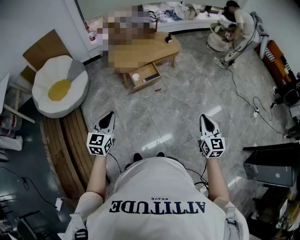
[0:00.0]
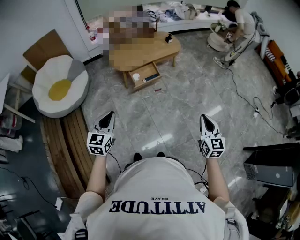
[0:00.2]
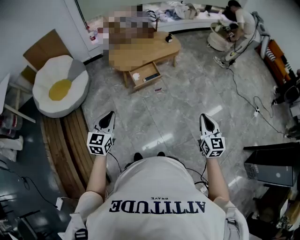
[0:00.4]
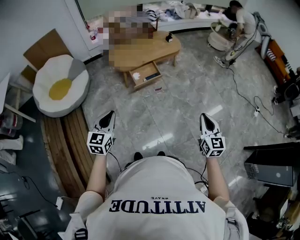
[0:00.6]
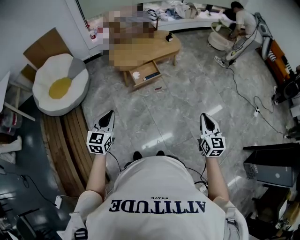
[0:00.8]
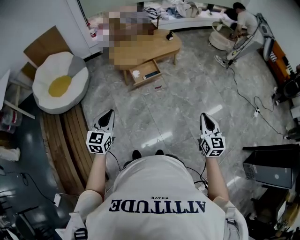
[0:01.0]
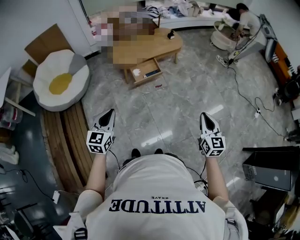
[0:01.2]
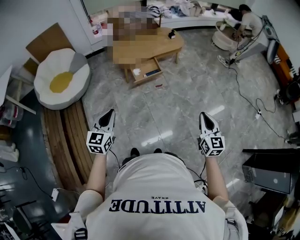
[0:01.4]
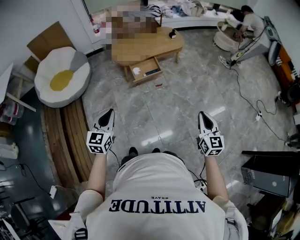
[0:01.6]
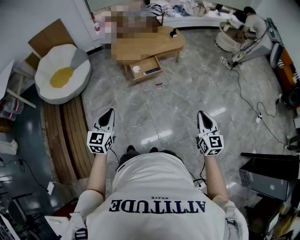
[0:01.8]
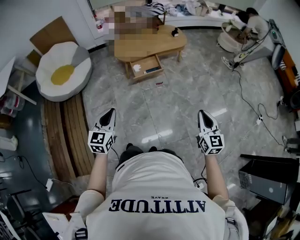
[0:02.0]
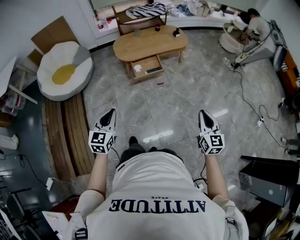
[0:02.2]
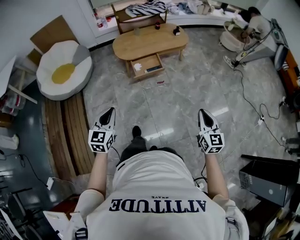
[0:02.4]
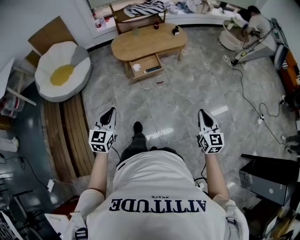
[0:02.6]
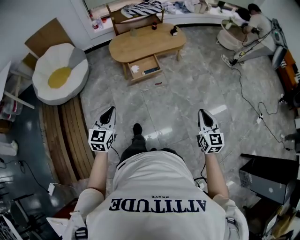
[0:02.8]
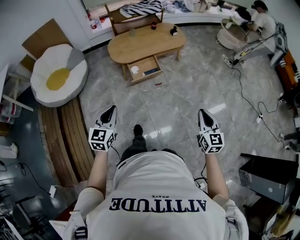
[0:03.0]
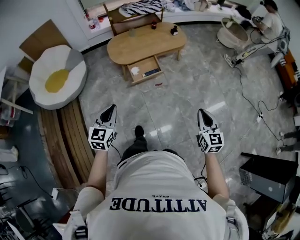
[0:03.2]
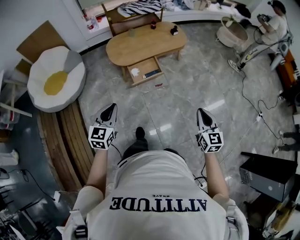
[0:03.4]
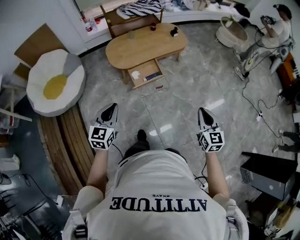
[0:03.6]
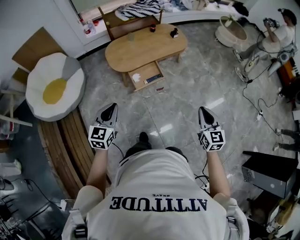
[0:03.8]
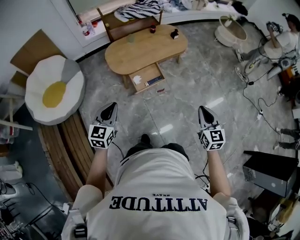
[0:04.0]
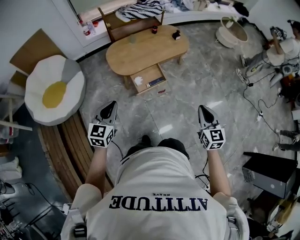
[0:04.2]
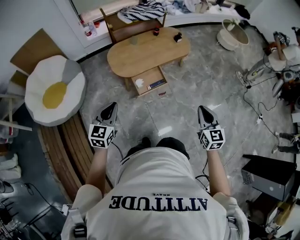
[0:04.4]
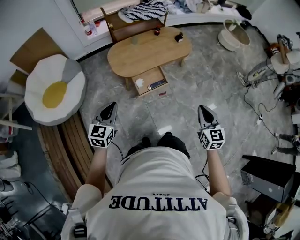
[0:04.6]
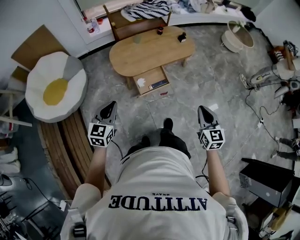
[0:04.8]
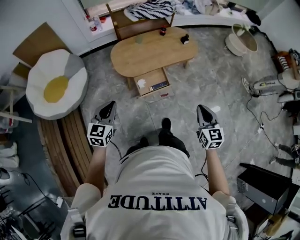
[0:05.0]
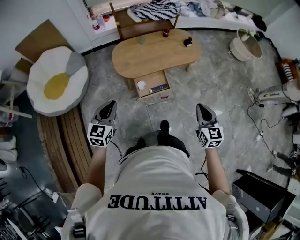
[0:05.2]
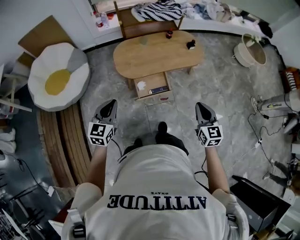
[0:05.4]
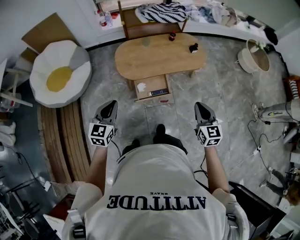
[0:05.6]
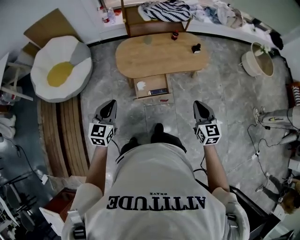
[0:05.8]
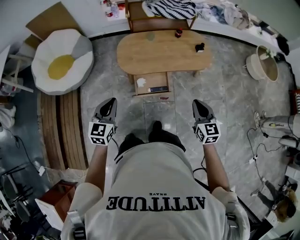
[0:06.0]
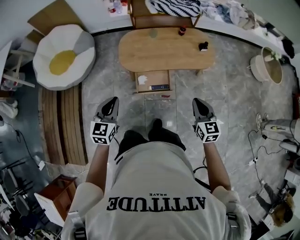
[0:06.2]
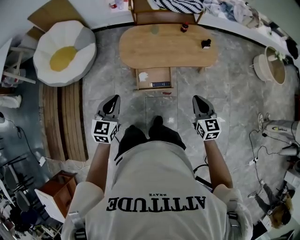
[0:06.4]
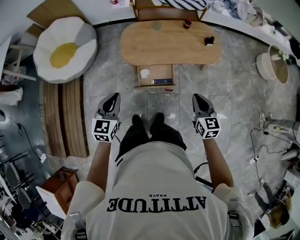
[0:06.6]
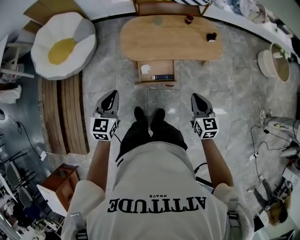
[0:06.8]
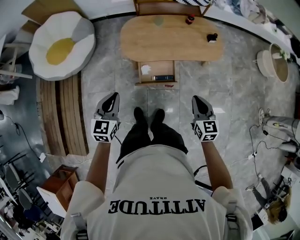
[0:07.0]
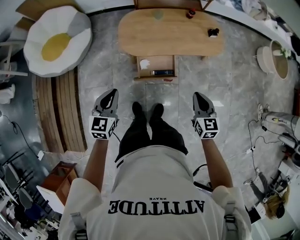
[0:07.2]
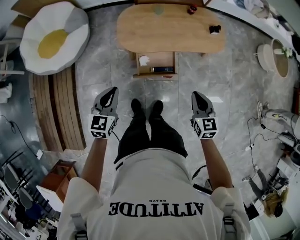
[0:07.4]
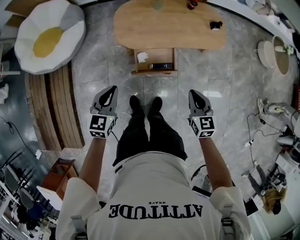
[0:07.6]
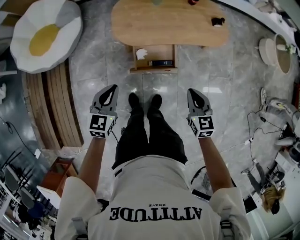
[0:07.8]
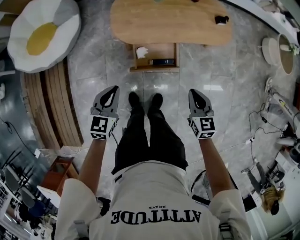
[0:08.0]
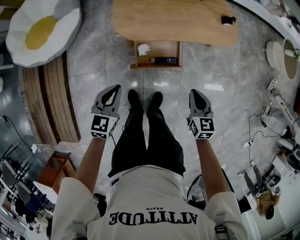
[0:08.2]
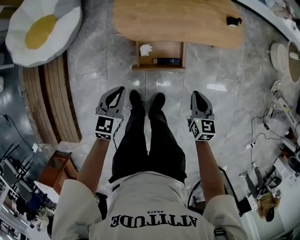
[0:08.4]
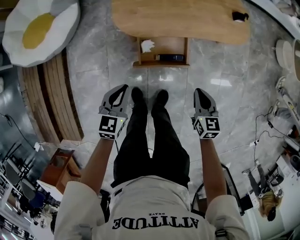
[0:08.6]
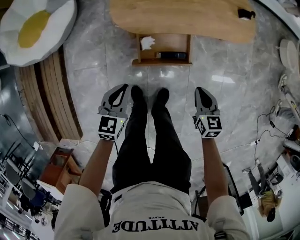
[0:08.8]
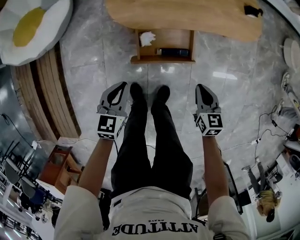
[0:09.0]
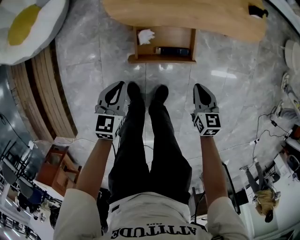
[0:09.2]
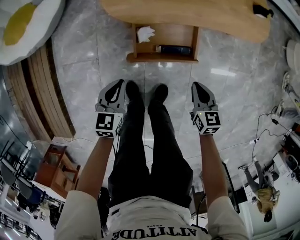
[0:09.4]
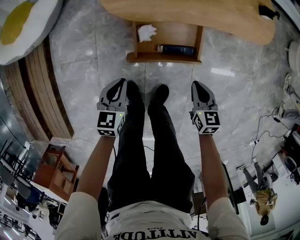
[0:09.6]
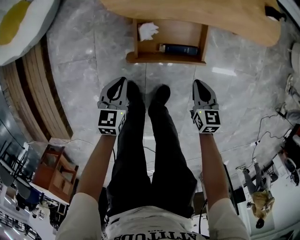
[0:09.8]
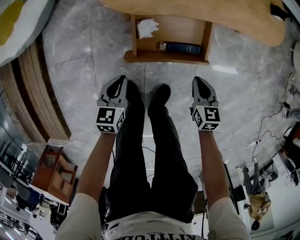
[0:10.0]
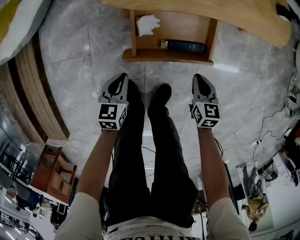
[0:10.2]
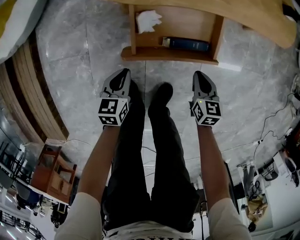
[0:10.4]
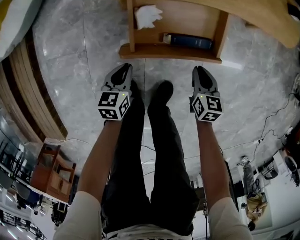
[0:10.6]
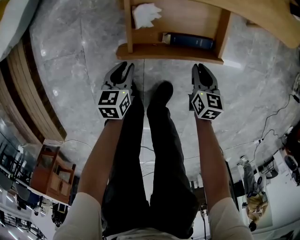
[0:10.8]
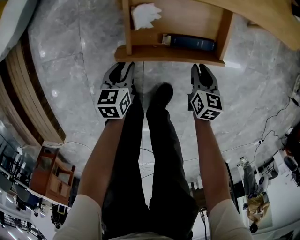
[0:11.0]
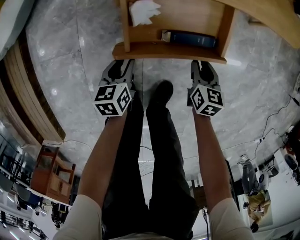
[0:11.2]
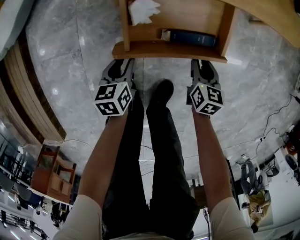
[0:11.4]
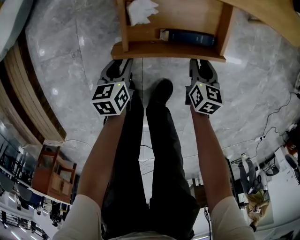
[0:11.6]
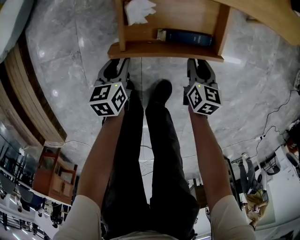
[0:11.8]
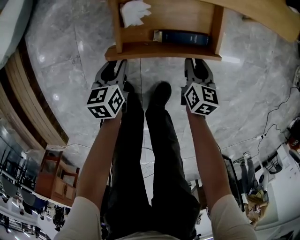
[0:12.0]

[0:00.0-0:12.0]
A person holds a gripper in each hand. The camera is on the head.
0.0 to 1.6 s: Both grippers move to the right, roughly 5 cm.
1.6 to 3.0 s: The grippers both shift forward by some 10 cm.
3.0 to 4.4 s: The grippers both shift forward and to the left by approximately 25 cm.
4.4 to 6.0 s: The left gripper is displaced to the right and forward by roughly 15 cm, and swivels roughly 20 degrees; the right gripper heads forward, covering about 25 cm, and changes its angle by some 20 degrees.
6.0 to 7.6 s: The left gripper moves downward and forward, some 15 cm; the right gripper goes approximately 15 cm downward, to the left and forward.
7.6 to 9.0 s: The grippers both shift downward by roughly 25 cm.
9.0 to 10.4 s: The two grippers go about 30 cm downward.
10.4 to 12.0 s: The left gripper moves roughly 5 cm, and opens. The right gripper changes place by approximately 5 cm, and opens its fingers.

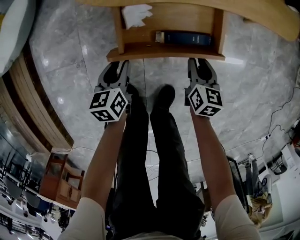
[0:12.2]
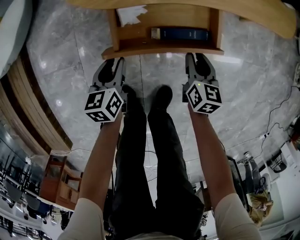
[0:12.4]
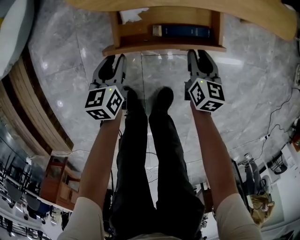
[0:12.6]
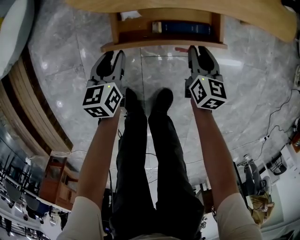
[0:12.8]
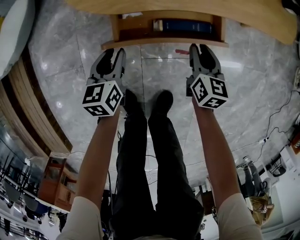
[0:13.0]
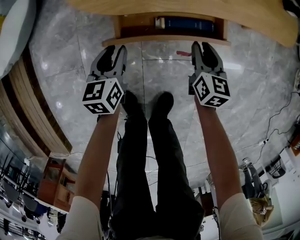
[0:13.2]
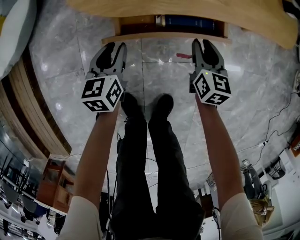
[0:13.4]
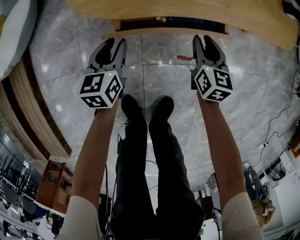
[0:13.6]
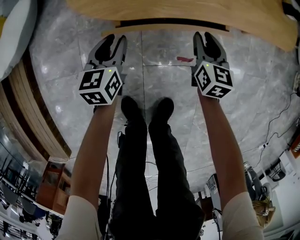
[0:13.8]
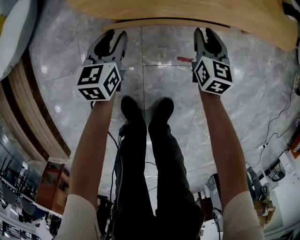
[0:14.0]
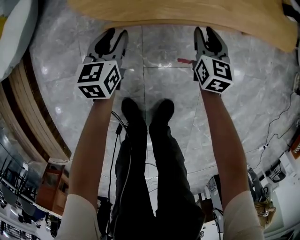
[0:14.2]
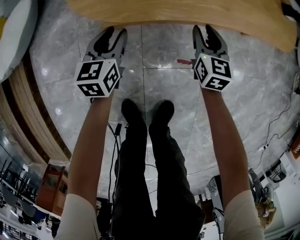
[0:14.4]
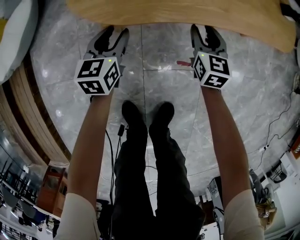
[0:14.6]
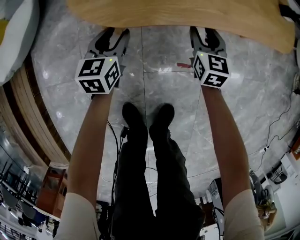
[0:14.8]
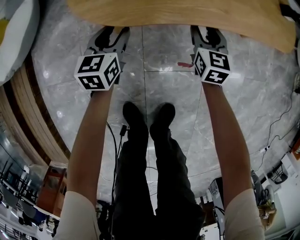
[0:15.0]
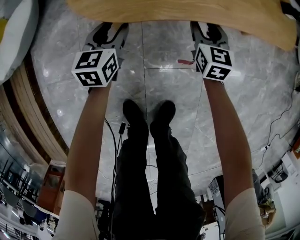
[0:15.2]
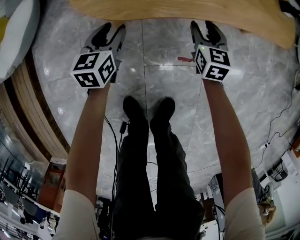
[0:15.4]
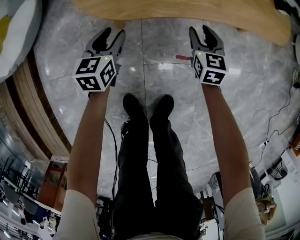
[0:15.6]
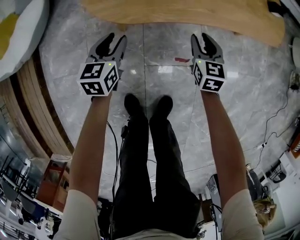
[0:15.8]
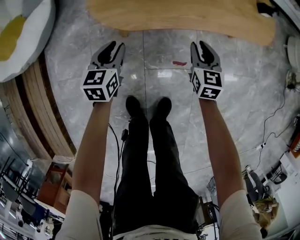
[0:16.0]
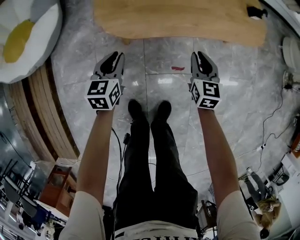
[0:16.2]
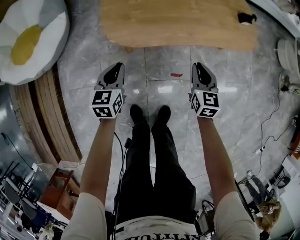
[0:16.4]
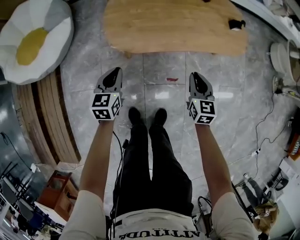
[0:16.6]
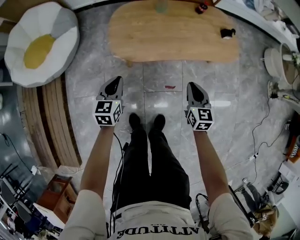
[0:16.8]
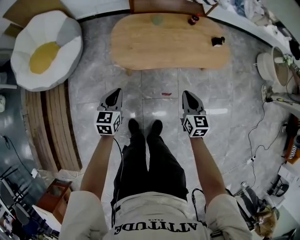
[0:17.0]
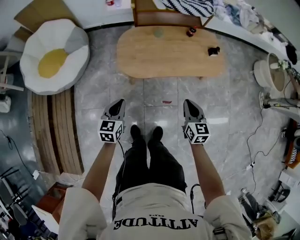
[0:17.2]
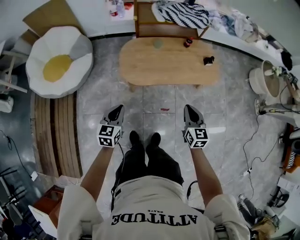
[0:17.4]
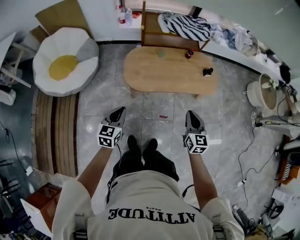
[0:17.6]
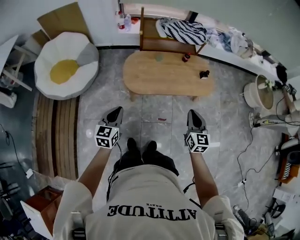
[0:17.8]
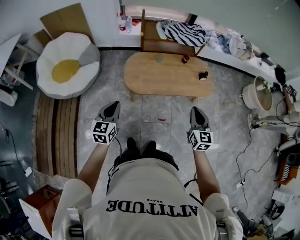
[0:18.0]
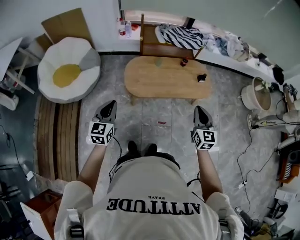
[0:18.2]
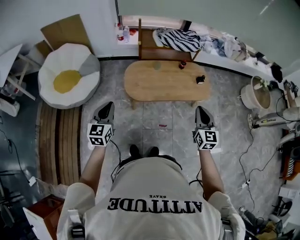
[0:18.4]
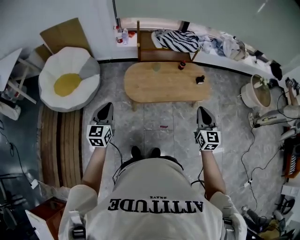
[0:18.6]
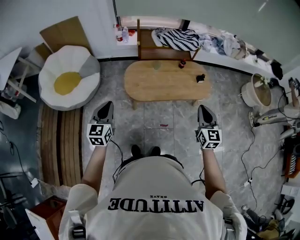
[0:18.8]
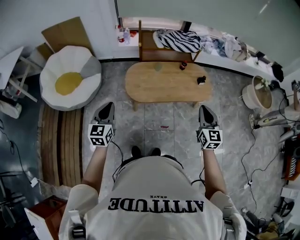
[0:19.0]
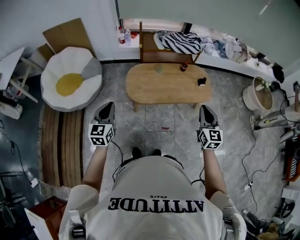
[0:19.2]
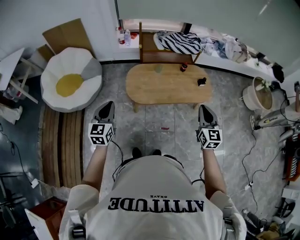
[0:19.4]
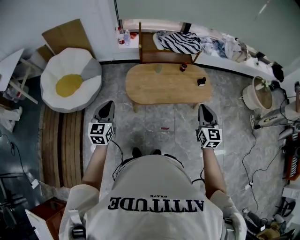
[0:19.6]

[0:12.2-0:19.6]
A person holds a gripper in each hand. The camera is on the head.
12.2 to 13.6 s: The grippers both shift forward by some 15 cm.
13.6 to 15.2 s: Both grippers move forward, some 5 cm.
15.2 to 16.6 s: The right gripper heads upward and backward, covering roughly 35 cm, and closes its fingers. Meanwhile the left gripper moves upward, approximately 30 cm, and closes.
16.6 to 18.2 s: Both grippers move upward, some 40 cm. The right gripper rotates about 20 degrees.
18.2 to 19.6 s: The grippers make only small movements.

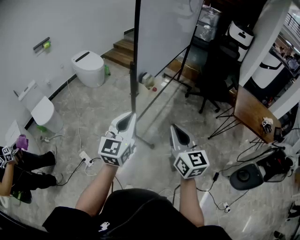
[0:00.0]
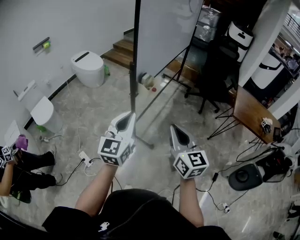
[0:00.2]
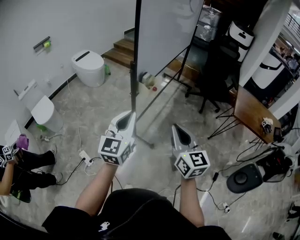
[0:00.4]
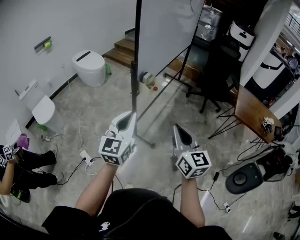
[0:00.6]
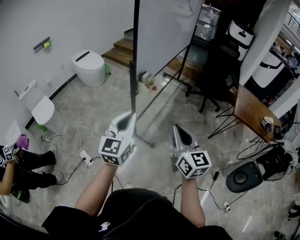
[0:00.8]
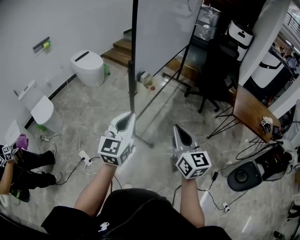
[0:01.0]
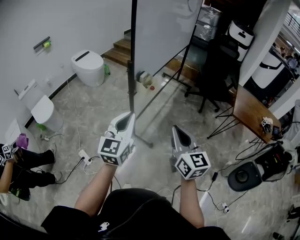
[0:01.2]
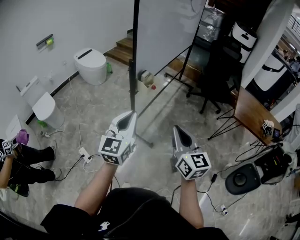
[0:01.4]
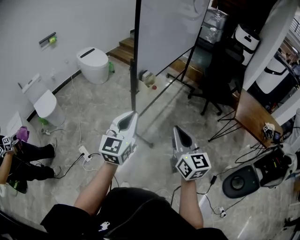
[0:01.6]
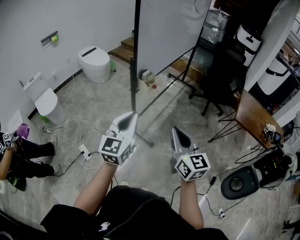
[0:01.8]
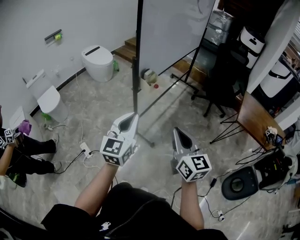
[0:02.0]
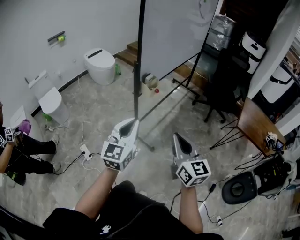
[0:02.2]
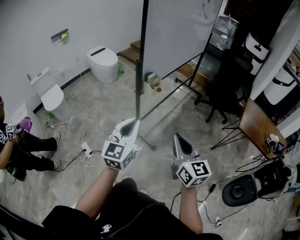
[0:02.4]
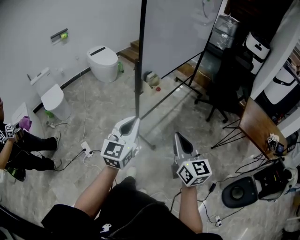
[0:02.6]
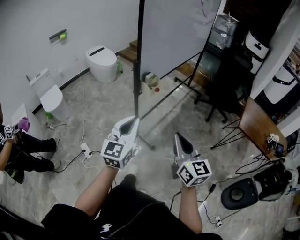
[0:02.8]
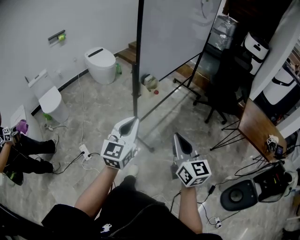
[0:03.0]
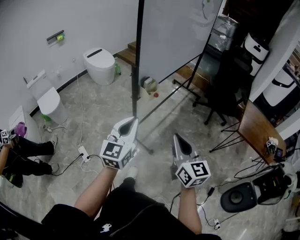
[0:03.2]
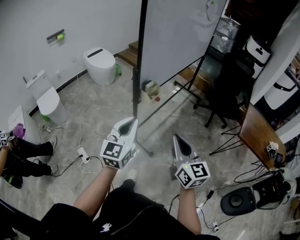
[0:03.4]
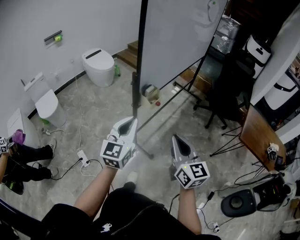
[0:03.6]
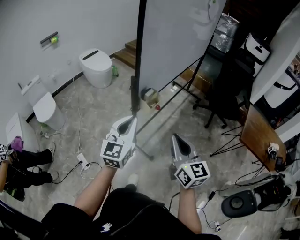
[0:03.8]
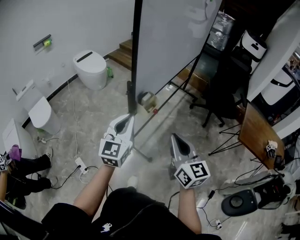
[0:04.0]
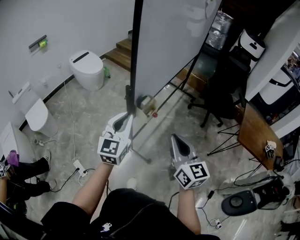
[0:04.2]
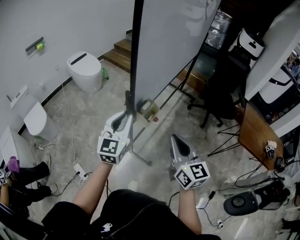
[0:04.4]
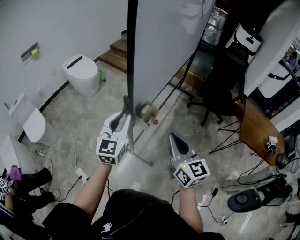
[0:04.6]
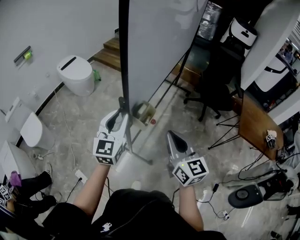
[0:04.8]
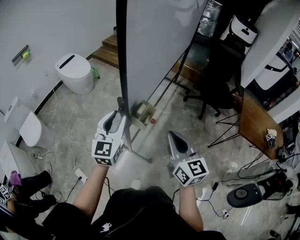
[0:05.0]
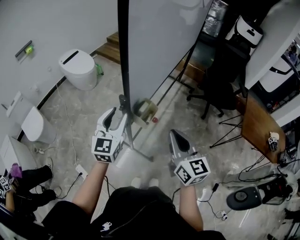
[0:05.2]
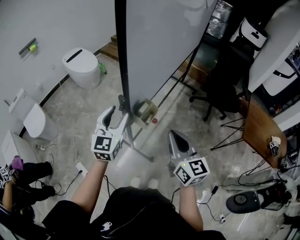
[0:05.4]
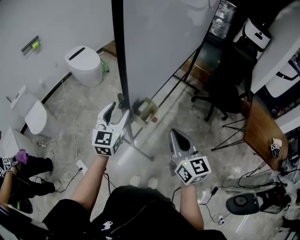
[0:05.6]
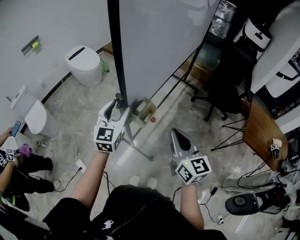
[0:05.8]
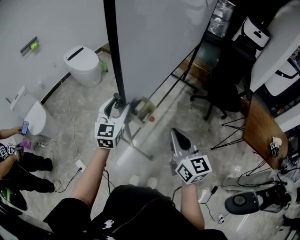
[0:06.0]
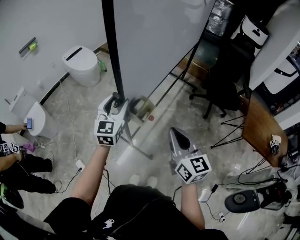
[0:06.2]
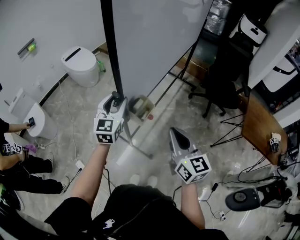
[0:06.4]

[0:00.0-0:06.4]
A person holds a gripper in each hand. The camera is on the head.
0.0 to 1.6 s: The grippers stay close to where they were, moving slightly.
1.6 to 3.2 s: The grippers stay close to where they were, moving slightly.
3.2 to 4.8 s: The grippers both shift forward by roughly 25 cm. The left gripper opens.
4.8 to 6.4 s: The left gripper goes roughly 5 cm forward, and opens its fingers.
